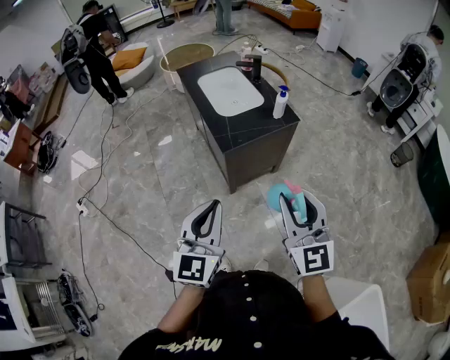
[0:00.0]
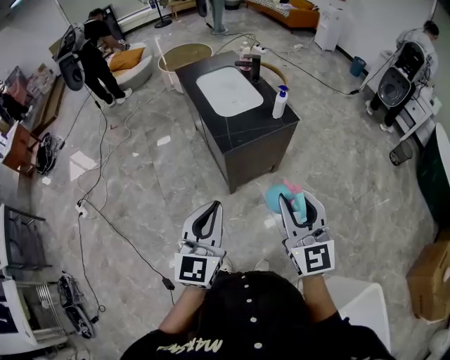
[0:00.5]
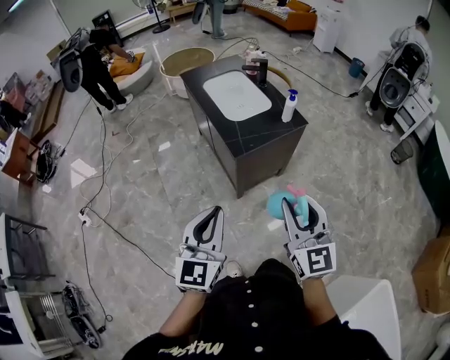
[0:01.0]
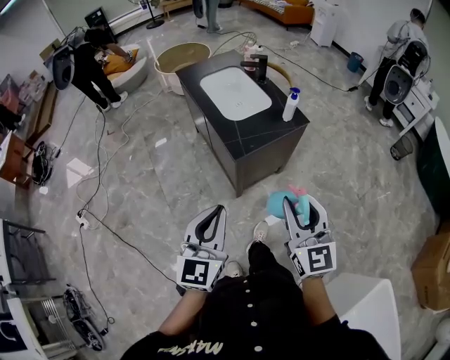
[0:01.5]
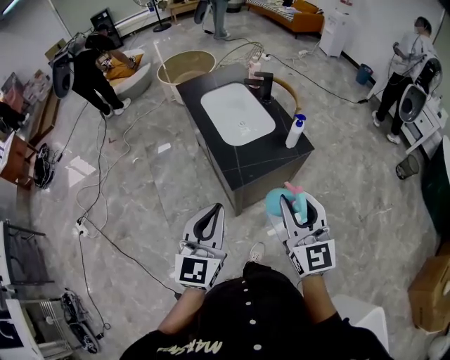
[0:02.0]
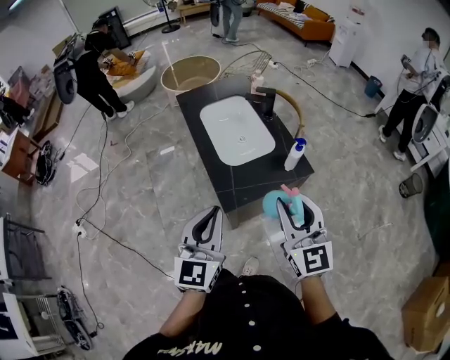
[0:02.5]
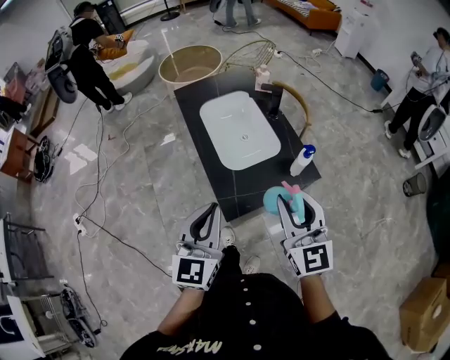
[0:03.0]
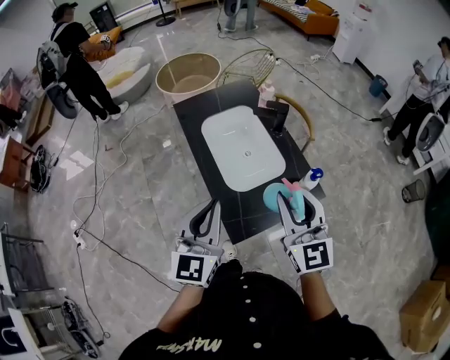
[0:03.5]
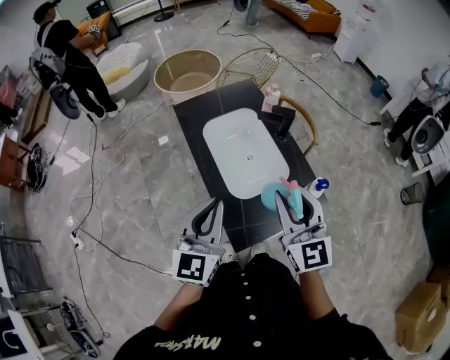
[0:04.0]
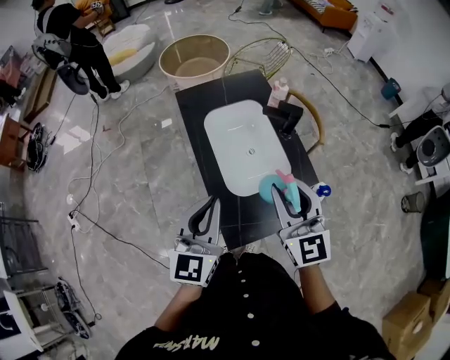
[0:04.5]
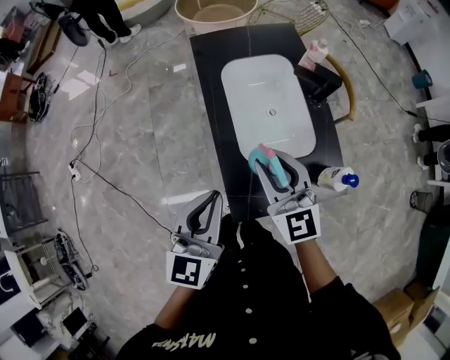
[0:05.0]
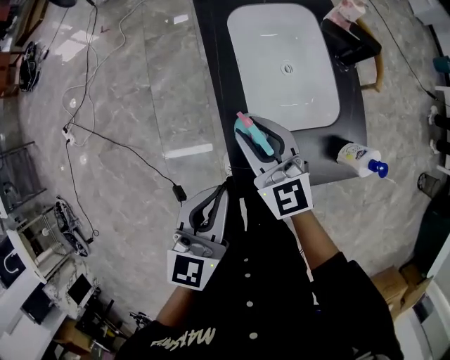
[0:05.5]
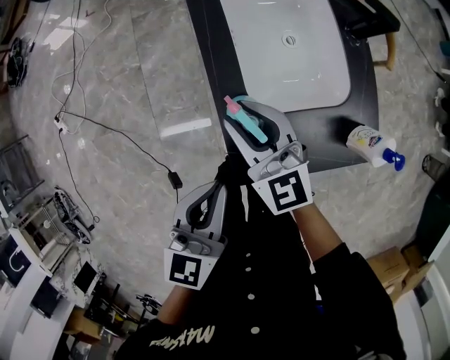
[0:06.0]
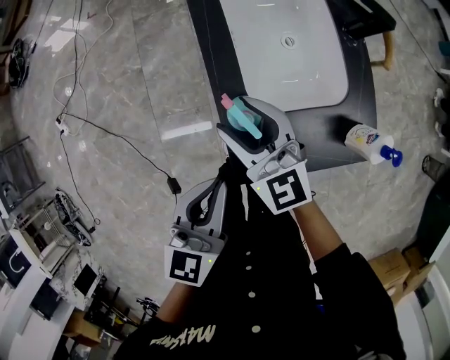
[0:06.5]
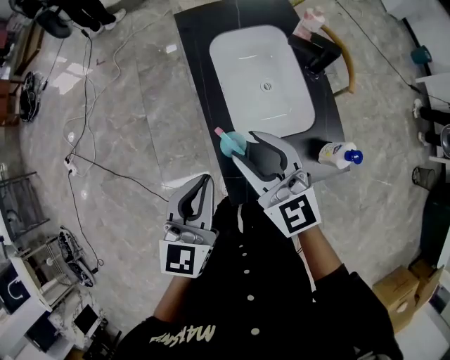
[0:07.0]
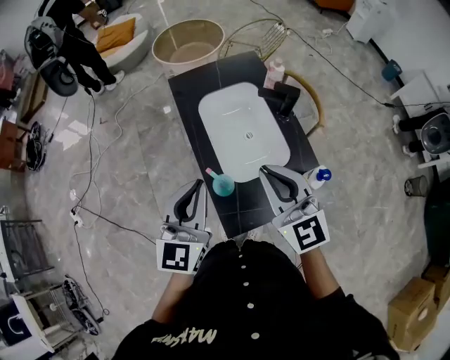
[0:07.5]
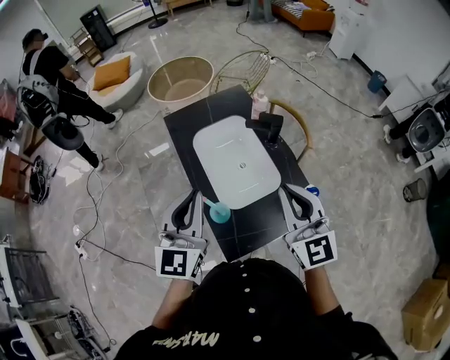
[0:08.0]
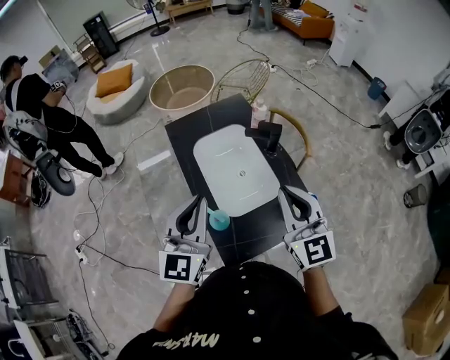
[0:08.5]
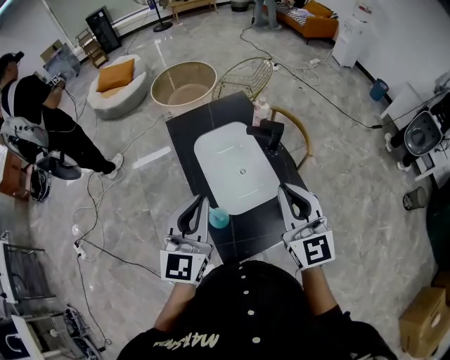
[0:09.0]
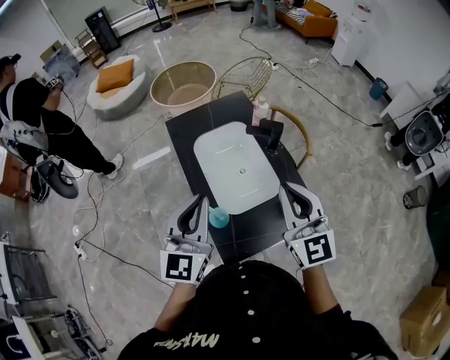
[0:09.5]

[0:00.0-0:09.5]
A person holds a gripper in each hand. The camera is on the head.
0:00.0 to 0:02.0: The grippers both shift forward by some 20 cm.
0:02.0 to 0:04.0: The two grippers go roughly 30 cm forward.
0:04.0 to 0:05.5: The right gripper is displaced downward and to the left by some 25 cm, and rotates approximately 30 degrees. Meanwhile the left gripper moves downward, approximately 15 cm, and changes its angle by about 20 degrees.
0:05.5 to 0:07.5: The left gripper travels upward and forward by about 15 cm, and turns by approximately 20 degrees. The right gripper moves upward and to the right, approximately 20 cm, and closes.
0:07.5 to 0:09.5: The right gripper shifts approximately 10 cm to the right. Meanwhile the left gripper ends up about 5 cm from where it was.

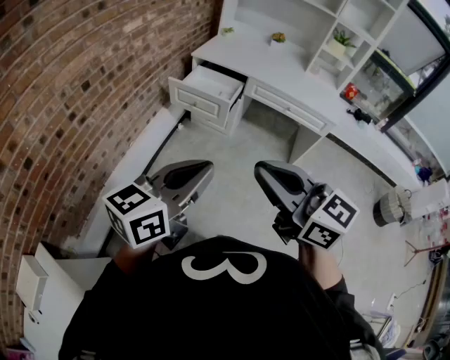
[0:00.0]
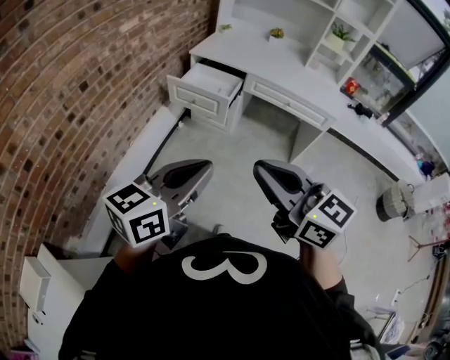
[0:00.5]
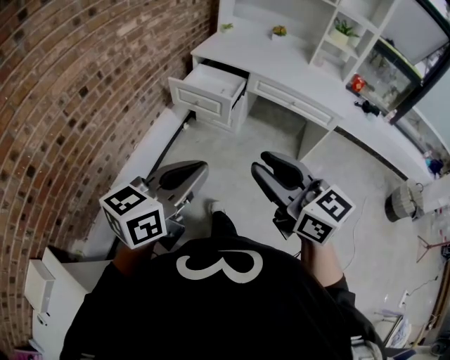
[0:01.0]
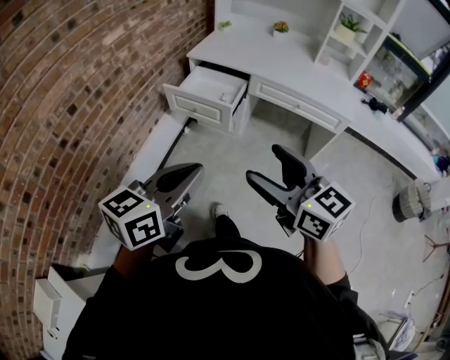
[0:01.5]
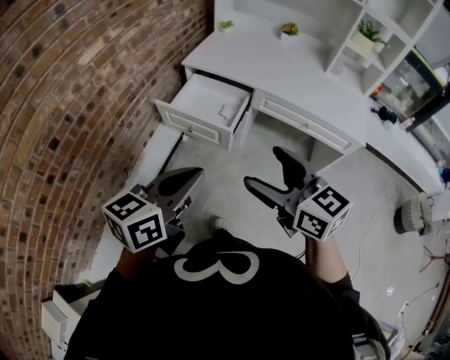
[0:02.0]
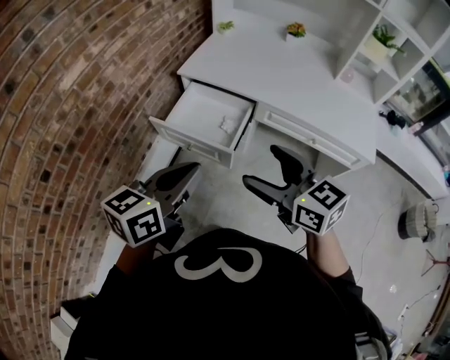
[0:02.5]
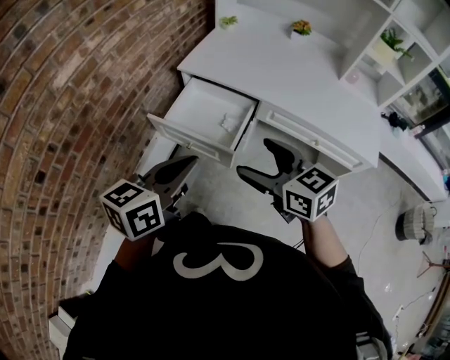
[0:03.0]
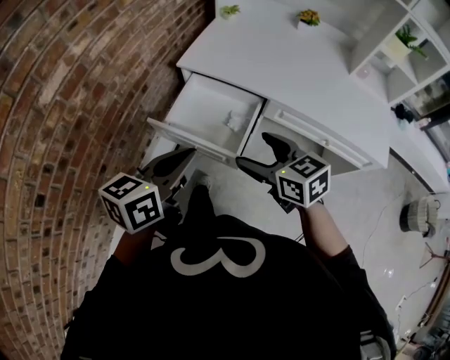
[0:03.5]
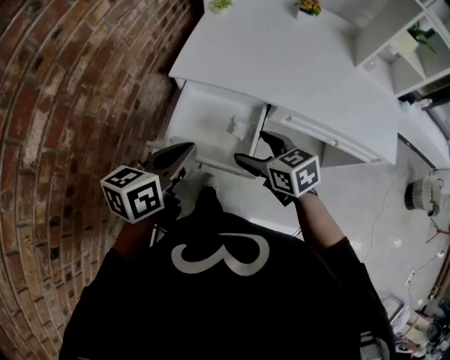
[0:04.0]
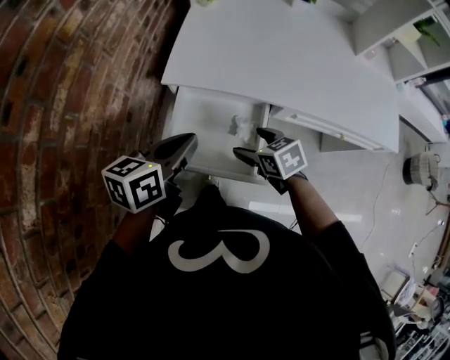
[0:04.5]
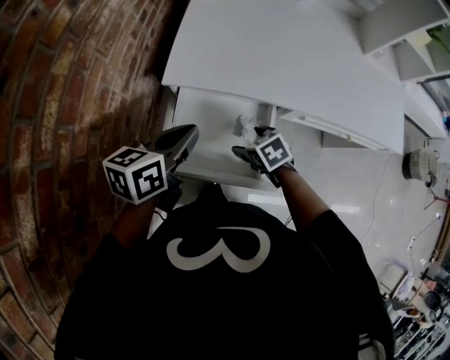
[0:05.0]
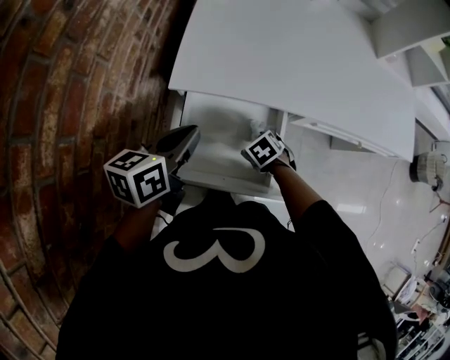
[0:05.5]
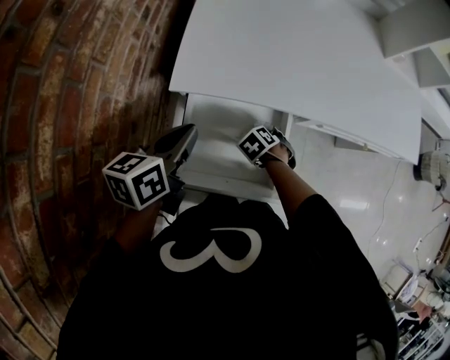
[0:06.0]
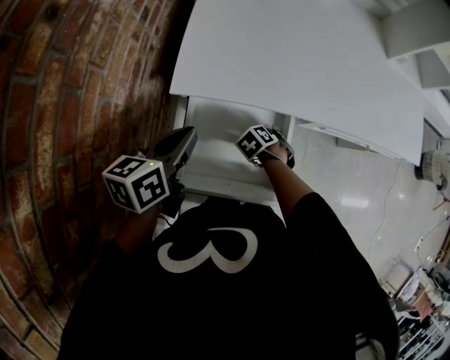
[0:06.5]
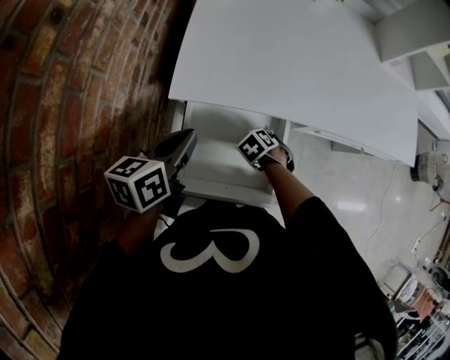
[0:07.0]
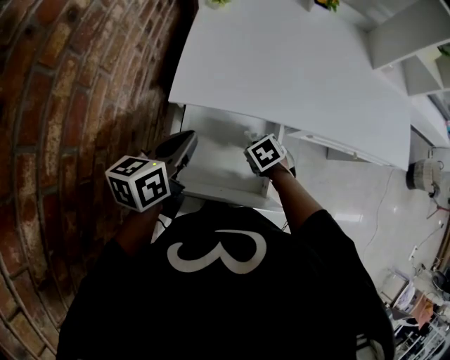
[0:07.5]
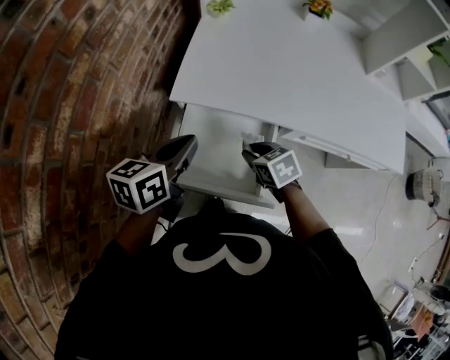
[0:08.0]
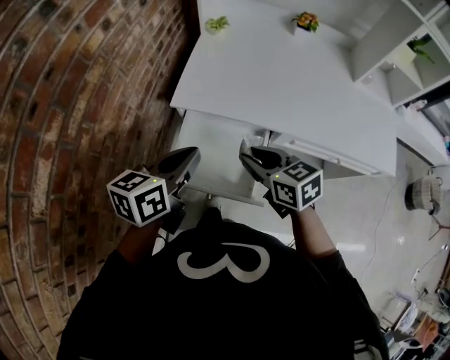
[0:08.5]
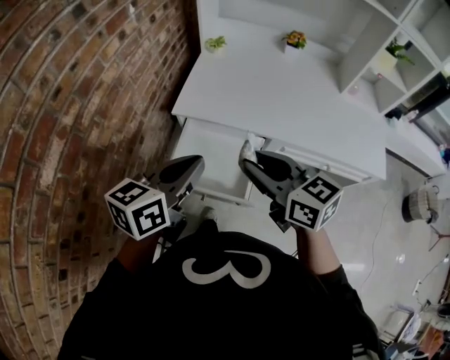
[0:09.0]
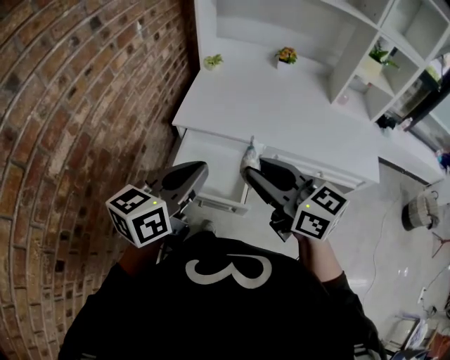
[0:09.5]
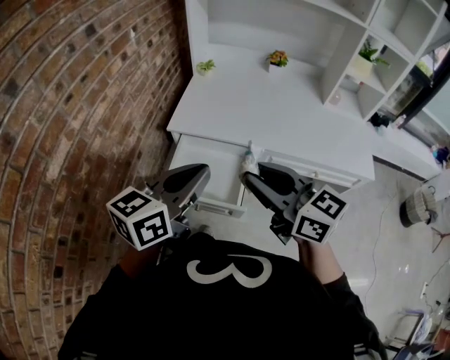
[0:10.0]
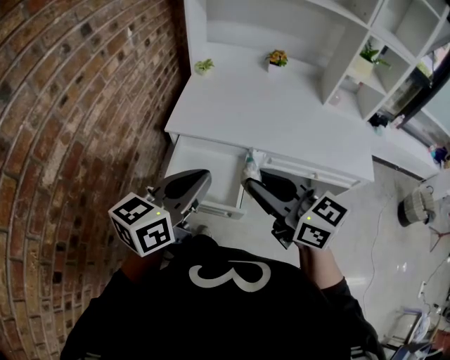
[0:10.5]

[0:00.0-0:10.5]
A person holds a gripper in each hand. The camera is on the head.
0:00.0 to 0:02.0: The grippers both shift forward by some 30 cm. The right gripper opens.
0:02.0 to 0:04.0: The left gripper travels forward by some 35 cm; the right gripper heads forward and downward, covering about 40 cm, and turns by roughly 30 degrees.
0:04.0 to 0:06.5: The right gripper shifts roughly 30 cm downward, tips its fingers downward by about 60 degrees, and closes. Meanwhile the left gripper ends up some 20 cm from where it was.
0:06.5 to 0:08.5: The left gripper ends up approximately 15 cm from where it was. The right gripper is displaced upward by about 35 cm, and points its fingers approximately 60 degrees further upward.
0:08.5 to 0:10.5: The right gripper goes some 20 cm upward and backward, and rotates some 30 degrees. Meanwhile the left gripper travels backward, upward and to the right by roughly 15 cm.

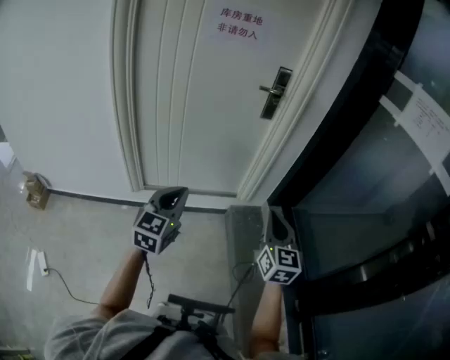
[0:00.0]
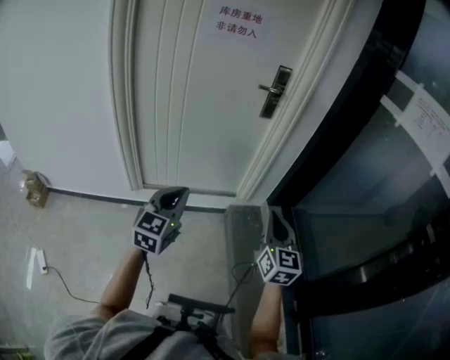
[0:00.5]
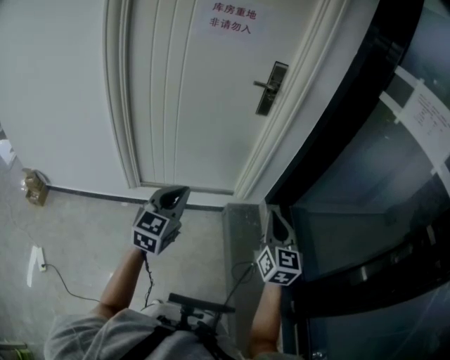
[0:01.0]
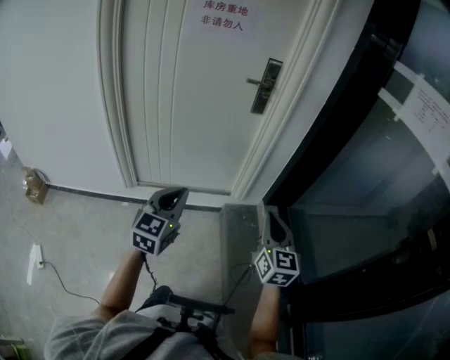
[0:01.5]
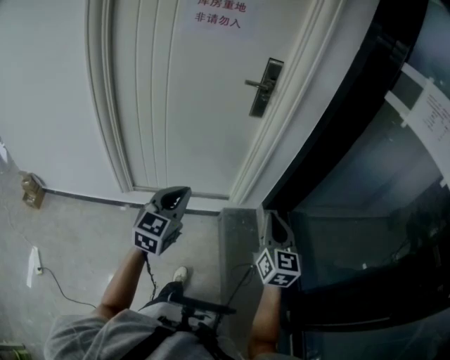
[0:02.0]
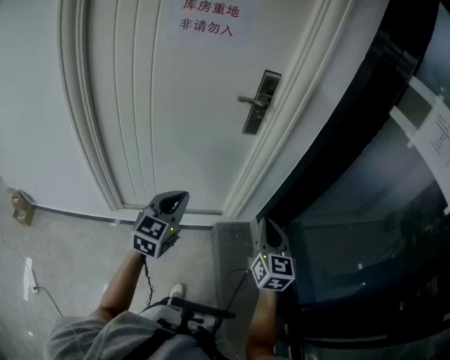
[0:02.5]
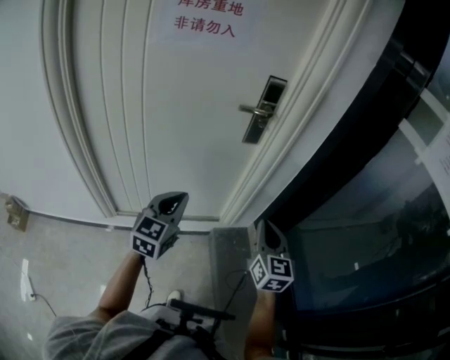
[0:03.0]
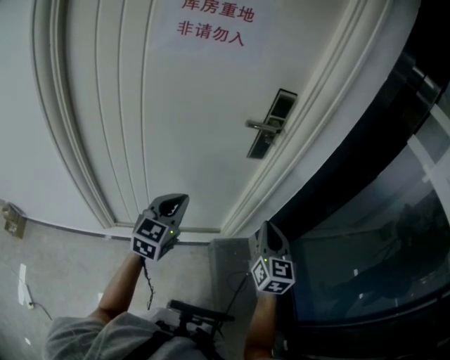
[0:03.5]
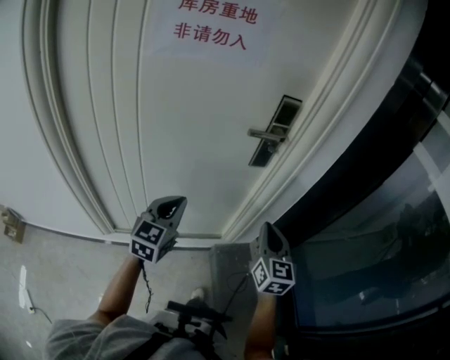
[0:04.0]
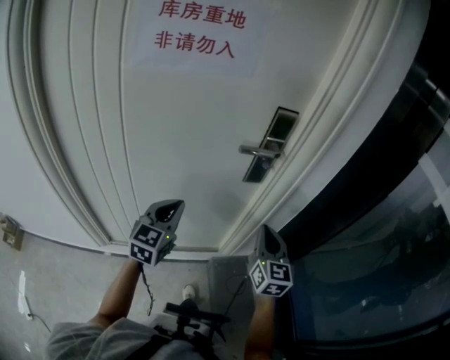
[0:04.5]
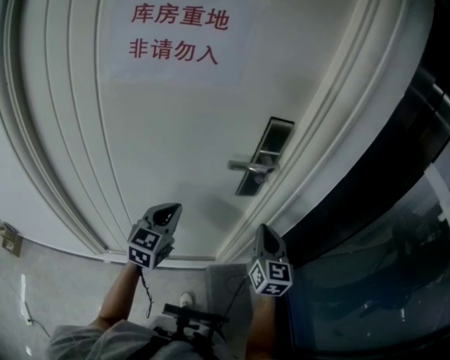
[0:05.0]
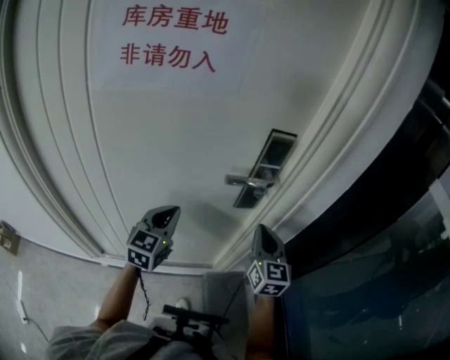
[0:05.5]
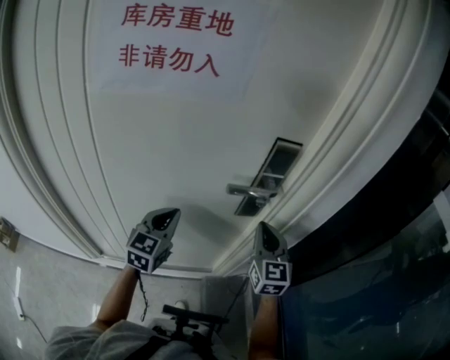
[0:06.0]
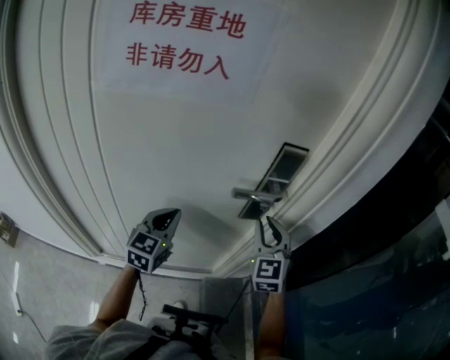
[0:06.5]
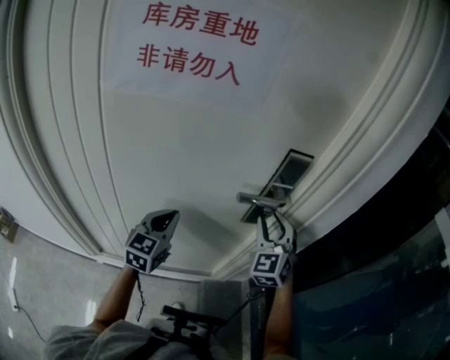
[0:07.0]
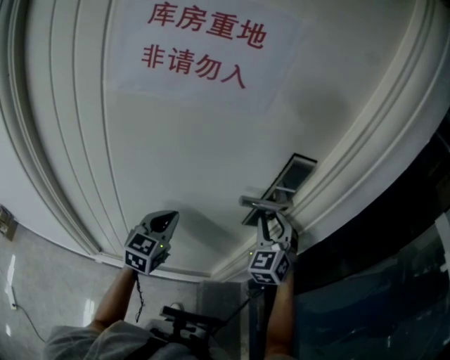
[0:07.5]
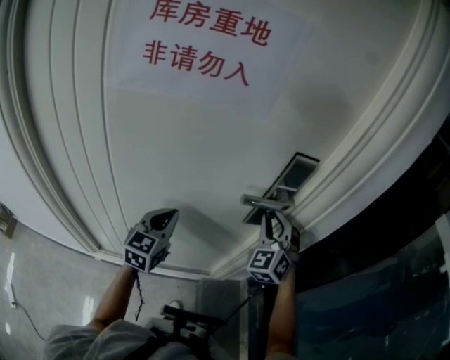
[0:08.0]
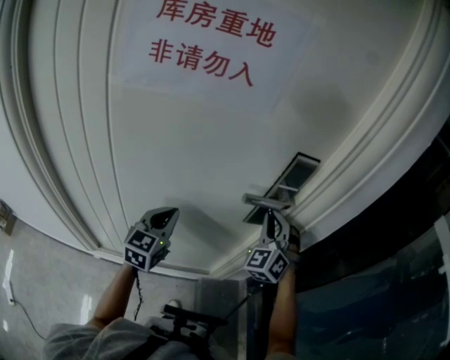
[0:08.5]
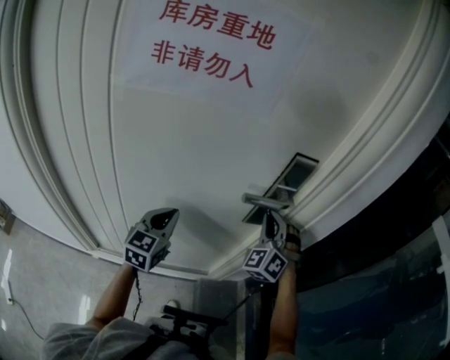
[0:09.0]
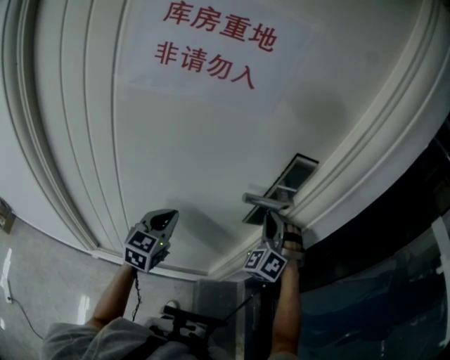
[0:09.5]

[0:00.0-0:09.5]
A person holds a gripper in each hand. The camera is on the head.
0:00.0 to 0:02.0: The two grippers go about 15 cm forward and to the right.
0:02.0 to 0:04.0: Both grippers travel together forward, roughly 30 cm.
0:04.0 to 0:05.5: The two grippers go approximately 20 cm forward.
0:05.5 to 0:07.5: The right gripper moves forward, some 10 cm, twists roughly 50 degrees counterclockwise, seen from behind, and opens.
0:07.5 to 0:09.5: The right gripper changes its angle by about 30 degrees, and closes up.
